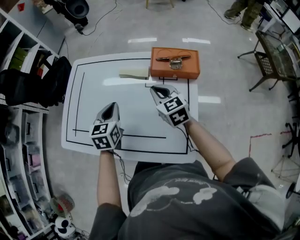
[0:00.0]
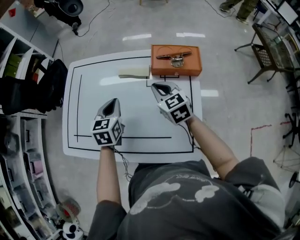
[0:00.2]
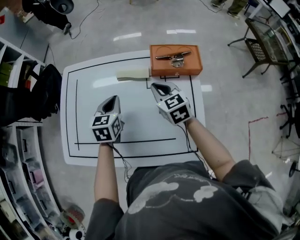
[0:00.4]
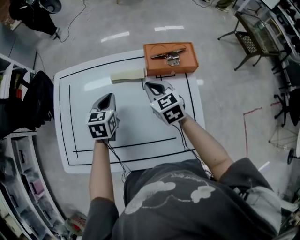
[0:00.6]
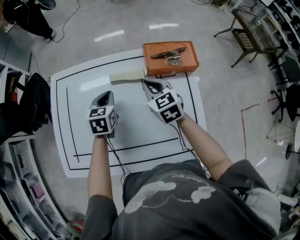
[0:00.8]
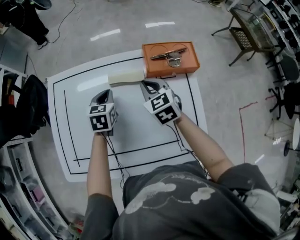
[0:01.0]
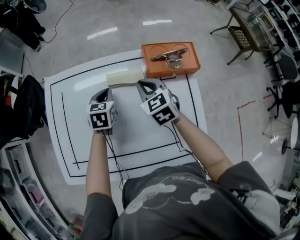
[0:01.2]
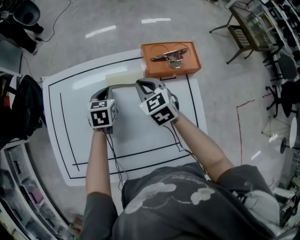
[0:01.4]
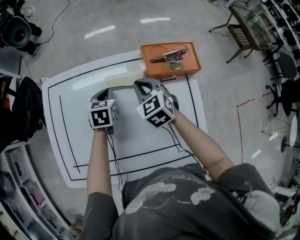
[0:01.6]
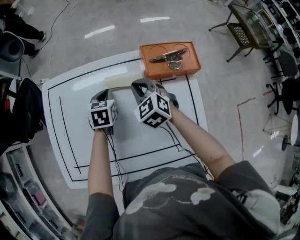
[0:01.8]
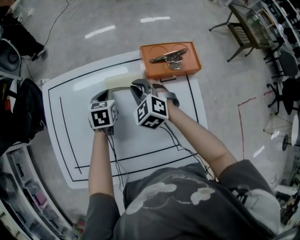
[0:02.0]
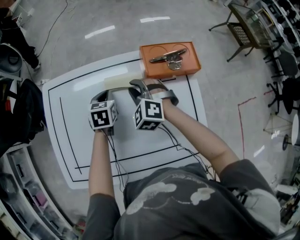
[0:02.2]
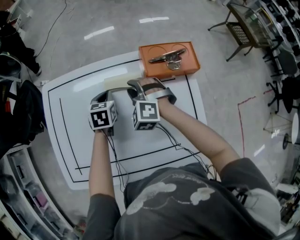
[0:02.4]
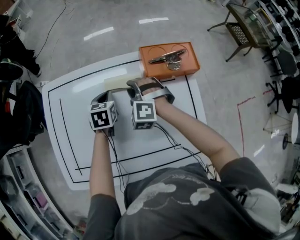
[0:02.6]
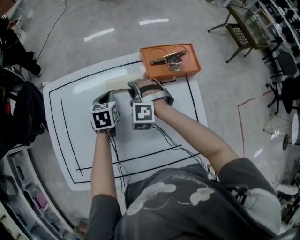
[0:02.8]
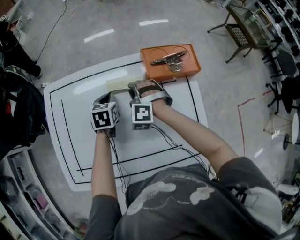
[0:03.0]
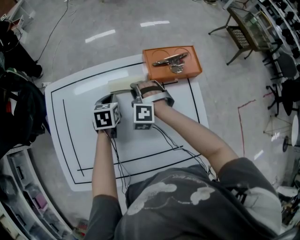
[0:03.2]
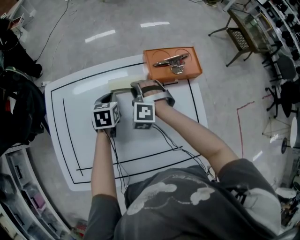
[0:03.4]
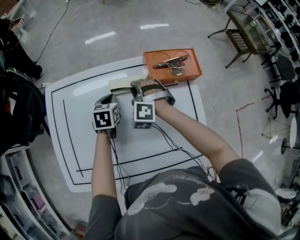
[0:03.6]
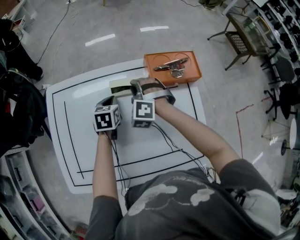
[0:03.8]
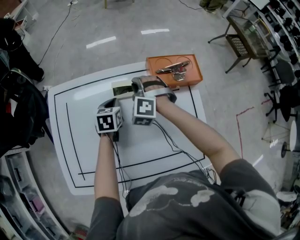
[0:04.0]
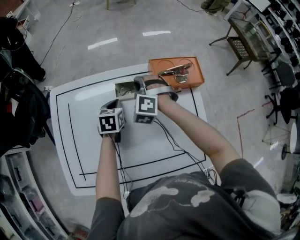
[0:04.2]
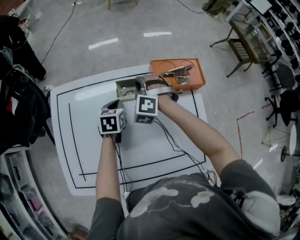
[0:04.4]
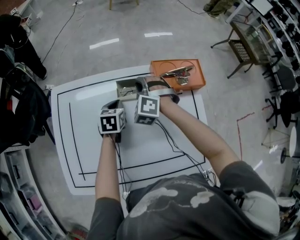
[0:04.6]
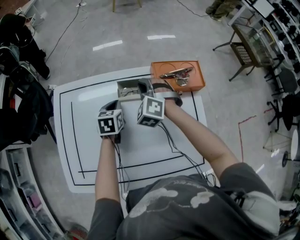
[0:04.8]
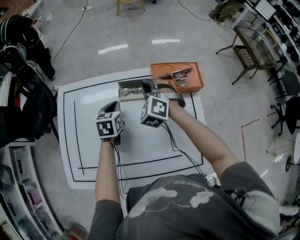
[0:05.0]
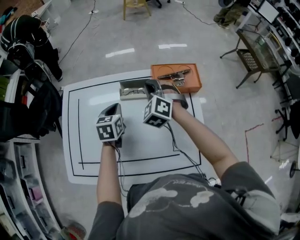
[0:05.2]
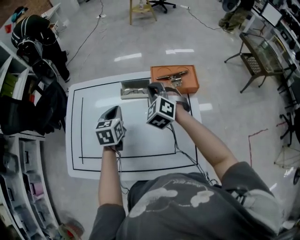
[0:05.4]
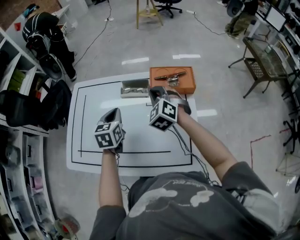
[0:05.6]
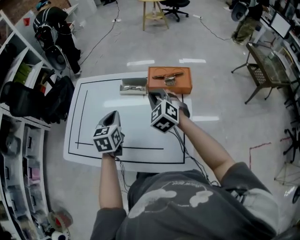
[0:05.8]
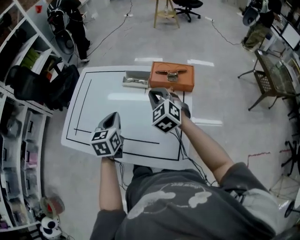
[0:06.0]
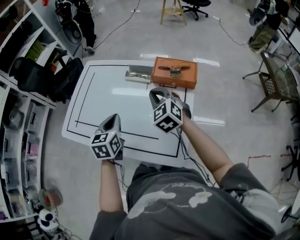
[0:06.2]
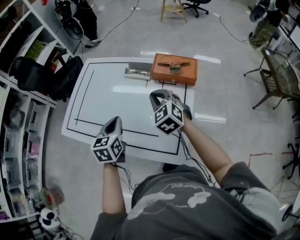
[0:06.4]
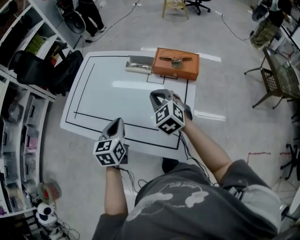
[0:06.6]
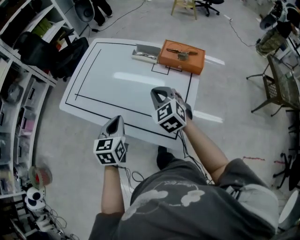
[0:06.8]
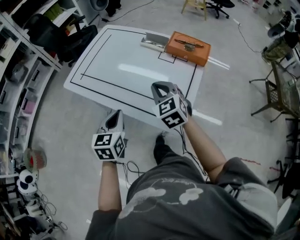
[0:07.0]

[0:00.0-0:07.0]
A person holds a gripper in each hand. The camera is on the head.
0:00.0 to 0:01.4: The right gripper moves forward and to the left, some 10 cm. Meanwhile the left gripper moves forward and downward, about 20 cm, and swivels approximately 20 degrees.
0:01.4 to 0:02.8: The right gripper ends up roughly 5 cm from where it was, rolls counterclockwise, seen from behind, by about 50 degrees, and opens up.
0:02.8 to 0:04.2: The right gripper travels forward by roughly 5 cm.
0:04.2 to 0:05.6: The right gripper is displaced to the right, backward and upward by roughly 15 cm, and rotates some 20 degrees; the left gripper travels upward and backward by some 20 cm, and rotates some 20 degrees.
0:05.6 to 0:07.0: The two grippers go approximately 30 cm backward. The right gripper swivels about 30 degrees.

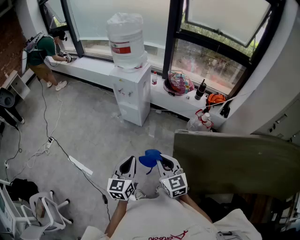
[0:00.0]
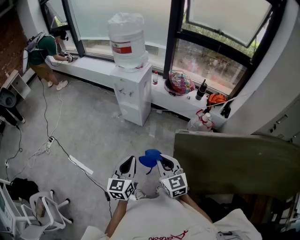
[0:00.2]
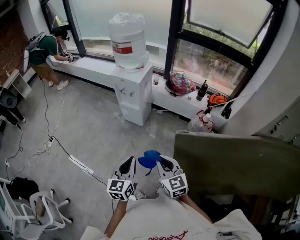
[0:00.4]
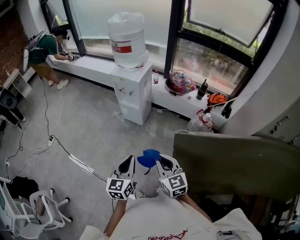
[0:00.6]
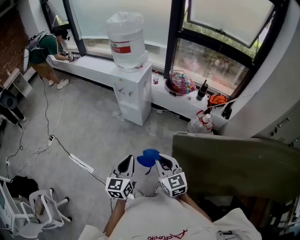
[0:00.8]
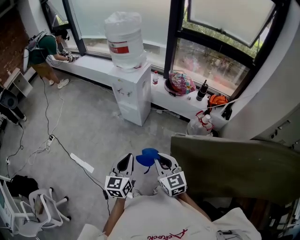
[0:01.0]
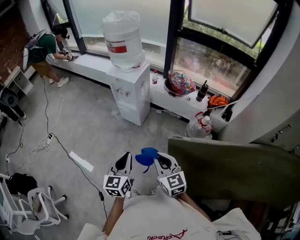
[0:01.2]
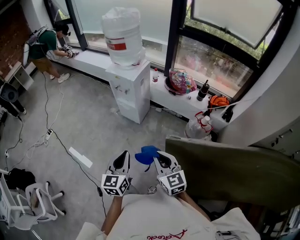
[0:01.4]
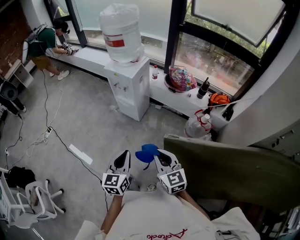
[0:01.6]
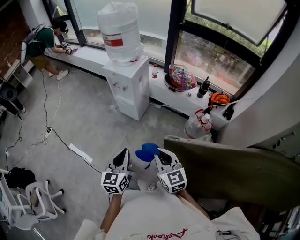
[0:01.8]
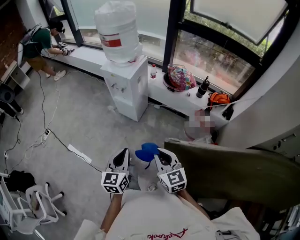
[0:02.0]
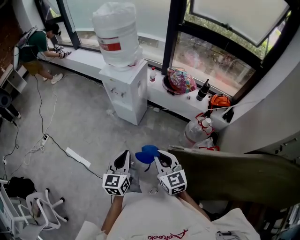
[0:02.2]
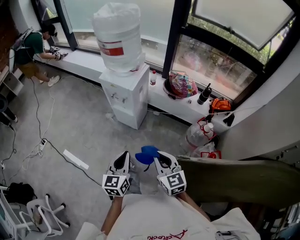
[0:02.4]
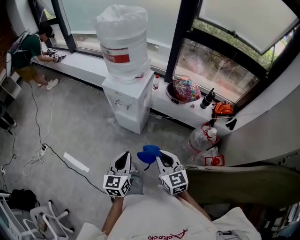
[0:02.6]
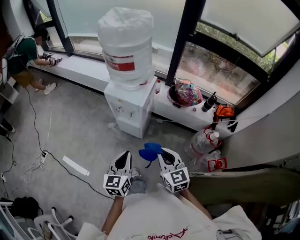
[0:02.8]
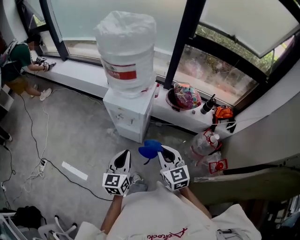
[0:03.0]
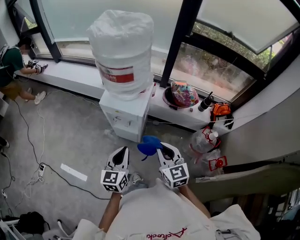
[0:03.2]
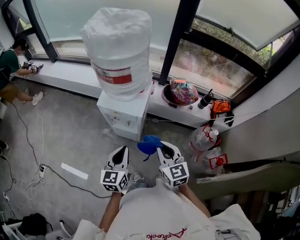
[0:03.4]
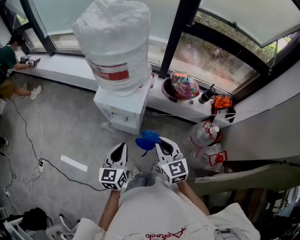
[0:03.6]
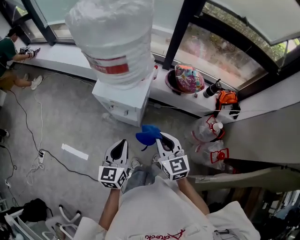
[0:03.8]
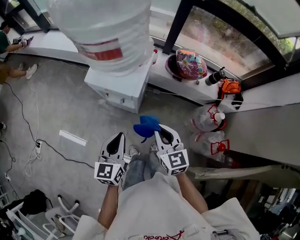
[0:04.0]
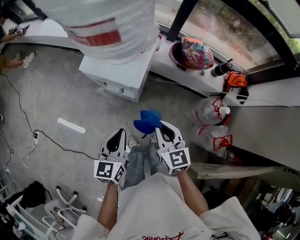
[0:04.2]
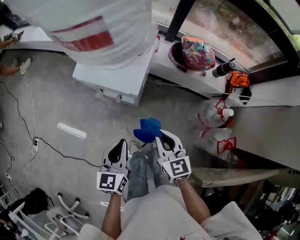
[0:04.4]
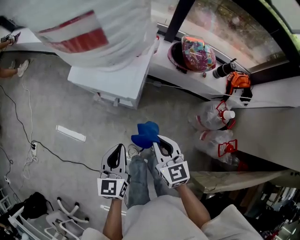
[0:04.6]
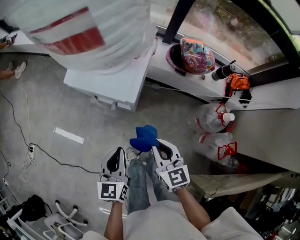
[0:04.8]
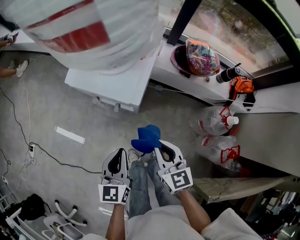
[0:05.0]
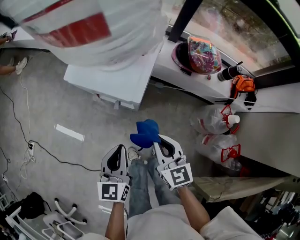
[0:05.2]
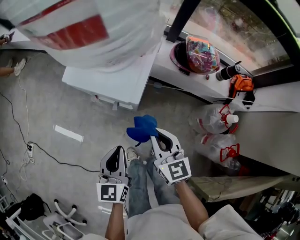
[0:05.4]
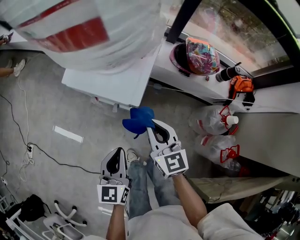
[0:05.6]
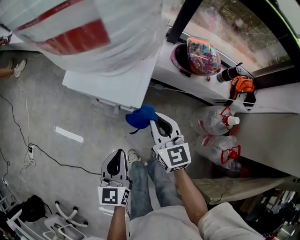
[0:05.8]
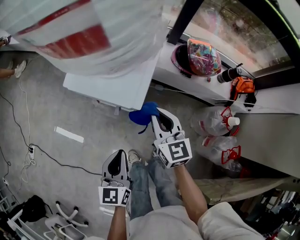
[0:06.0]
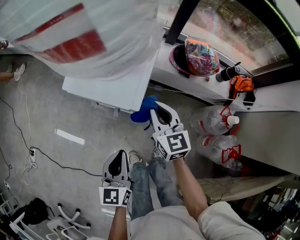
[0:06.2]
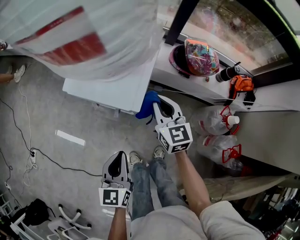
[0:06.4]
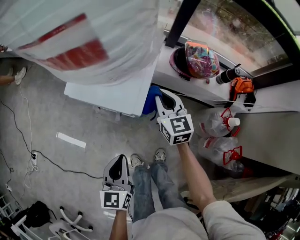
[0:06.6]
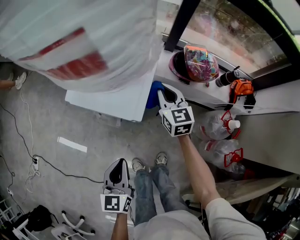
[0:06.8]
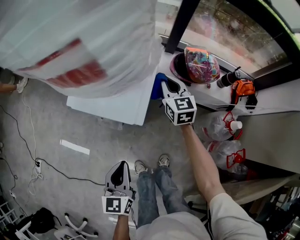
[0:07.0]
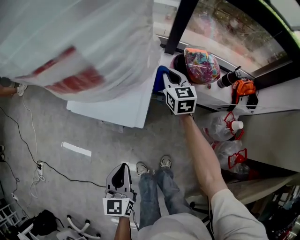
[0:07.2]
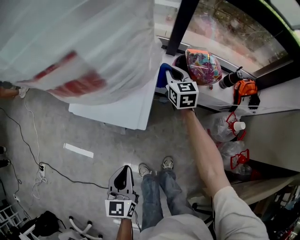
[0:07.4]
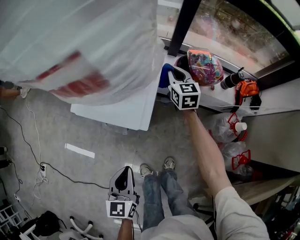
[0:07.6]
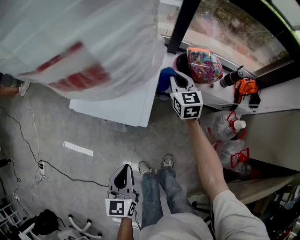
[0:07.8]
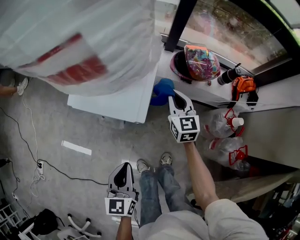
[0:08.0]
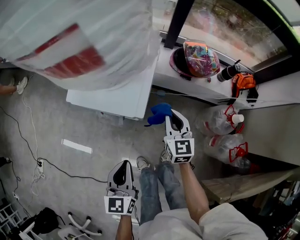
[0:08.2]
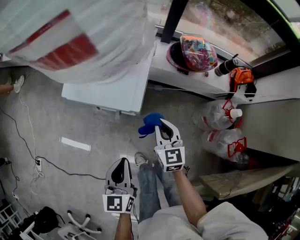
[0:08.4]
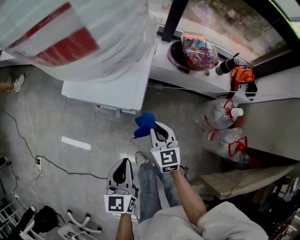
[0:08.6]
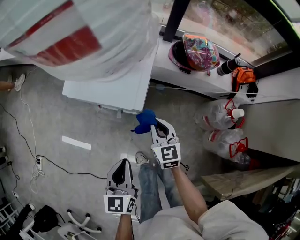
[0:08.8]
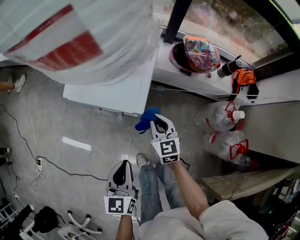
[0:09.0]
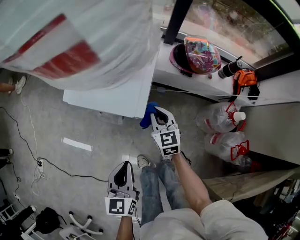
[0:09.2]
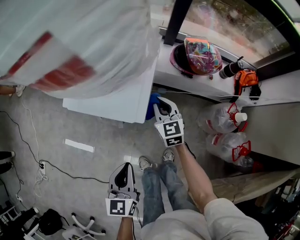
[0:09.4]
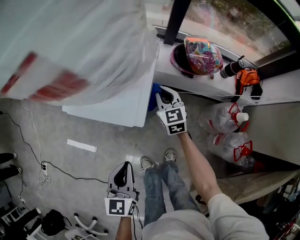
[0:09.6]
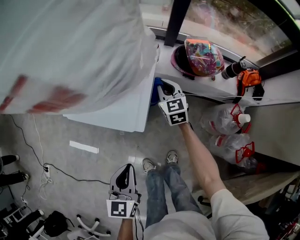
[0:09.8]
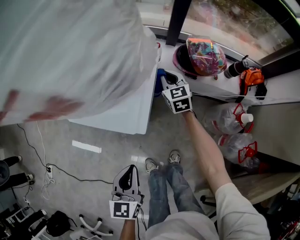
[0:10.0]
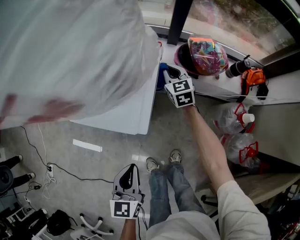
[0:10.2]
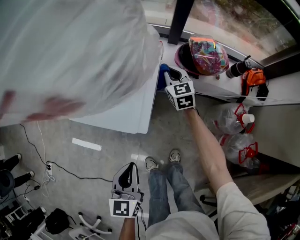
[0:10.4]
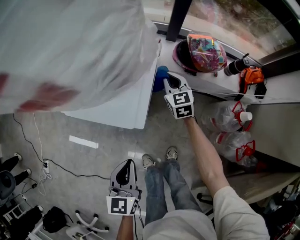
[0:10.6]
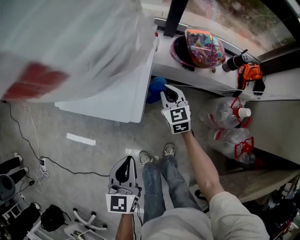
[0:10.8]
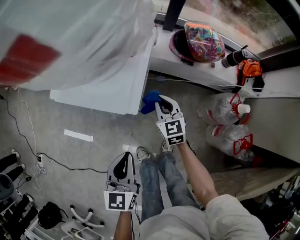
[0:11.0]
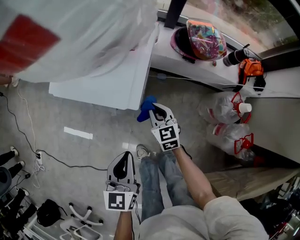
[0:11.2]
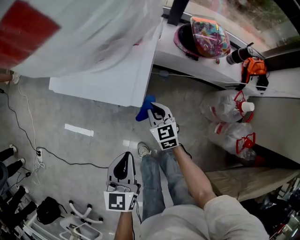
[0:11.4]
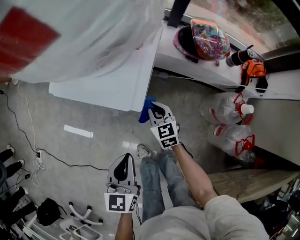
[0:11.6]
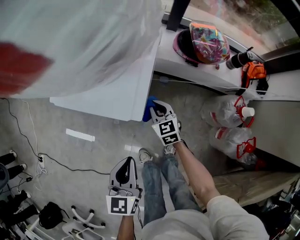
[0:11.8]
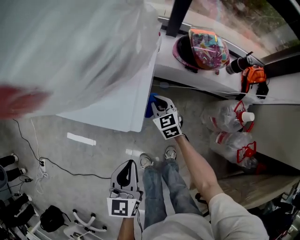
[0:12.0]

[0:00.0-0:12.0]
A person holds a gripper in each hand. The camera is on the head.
0:00.0 to 0:01.6: The two grippers go about 10 cm to the right and forward.
0:01.6 to 0:03.0: The two grippers go roughly 35 cm forward.
0:03.0 to 0:04.4: The two grippers go about 15 cm downward and forward.
0:04.4 to 0:06.0: The left gripper ends up roughly 5 cm from where it was. Meanwhile the right gripper moves forward, some 15 cm.
0:06.0 to 0:07.6: The right gripper goes approximately 25 cm forward.
0:07.6 to 0:09.0: The right gripper moves backward, approximately 25 cm.
0:09.0 to 0:10.4: The right gripper goes some 25 cm forward; the left gripper shifts roughly 5 cm forward.
0:10.4 to 0:12.0: The right gripper moves backward, downward and to the left, some 20 cm.

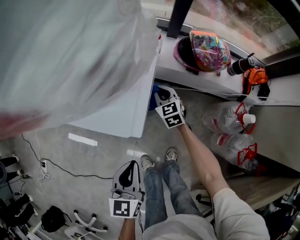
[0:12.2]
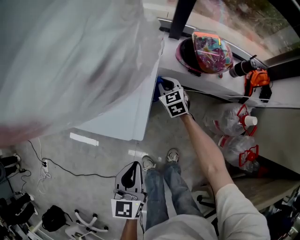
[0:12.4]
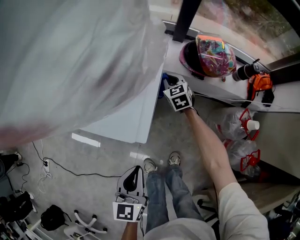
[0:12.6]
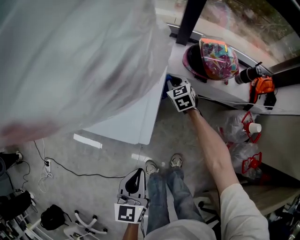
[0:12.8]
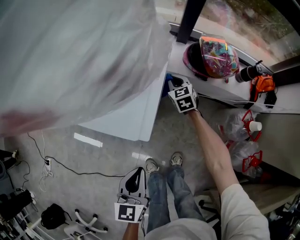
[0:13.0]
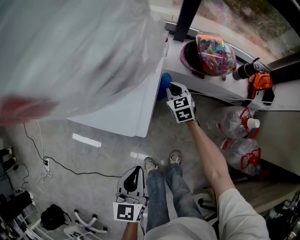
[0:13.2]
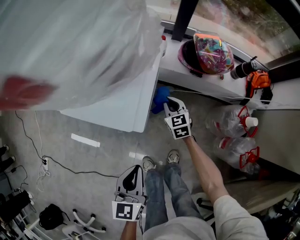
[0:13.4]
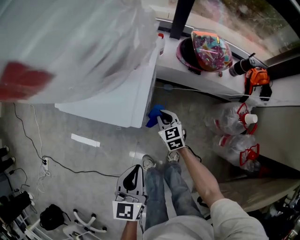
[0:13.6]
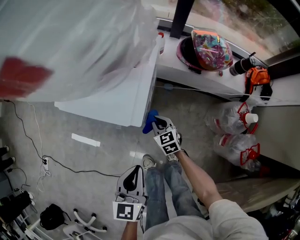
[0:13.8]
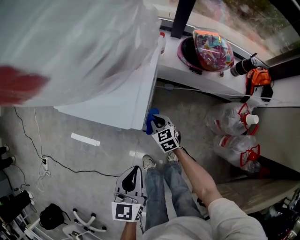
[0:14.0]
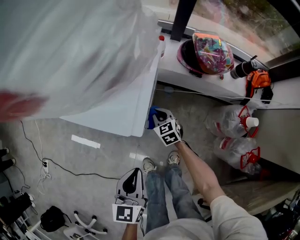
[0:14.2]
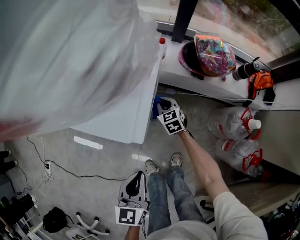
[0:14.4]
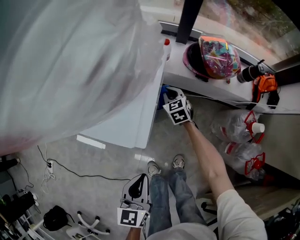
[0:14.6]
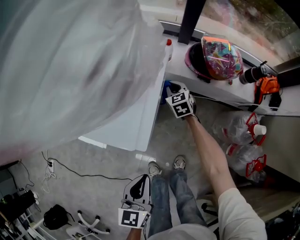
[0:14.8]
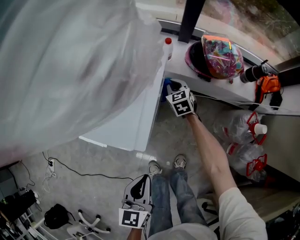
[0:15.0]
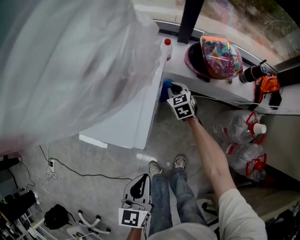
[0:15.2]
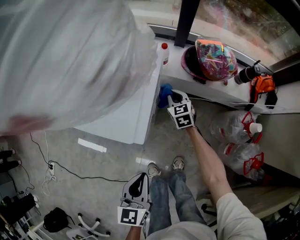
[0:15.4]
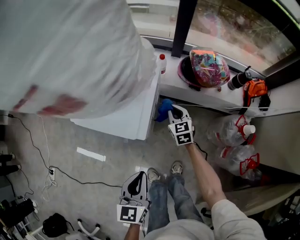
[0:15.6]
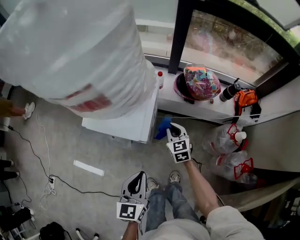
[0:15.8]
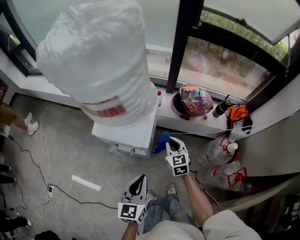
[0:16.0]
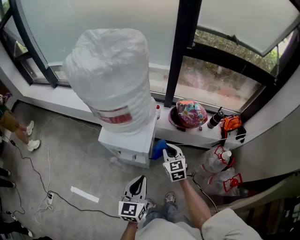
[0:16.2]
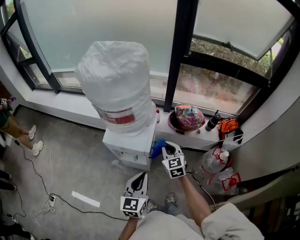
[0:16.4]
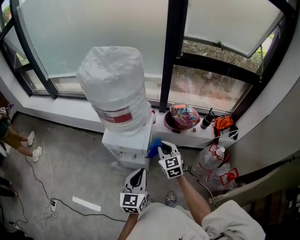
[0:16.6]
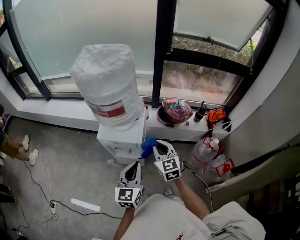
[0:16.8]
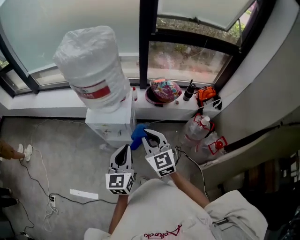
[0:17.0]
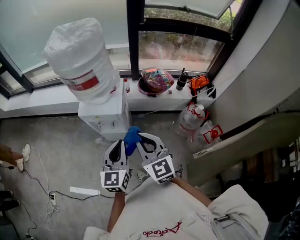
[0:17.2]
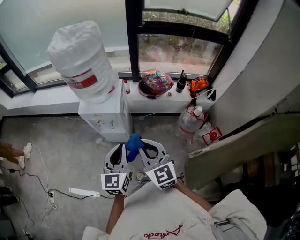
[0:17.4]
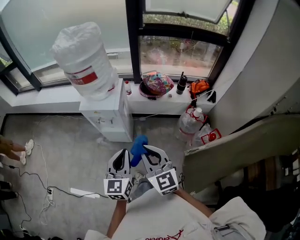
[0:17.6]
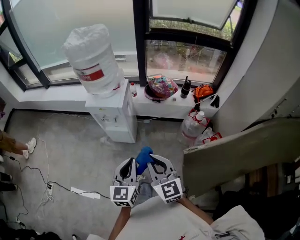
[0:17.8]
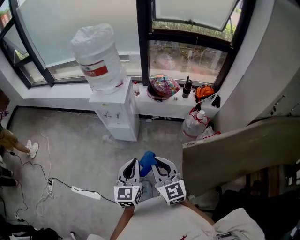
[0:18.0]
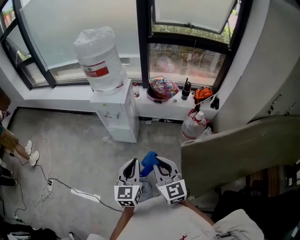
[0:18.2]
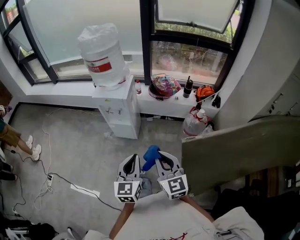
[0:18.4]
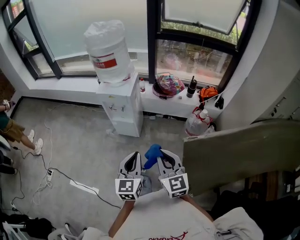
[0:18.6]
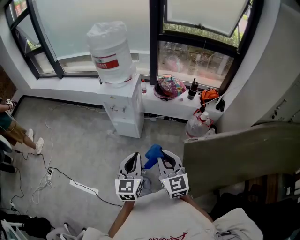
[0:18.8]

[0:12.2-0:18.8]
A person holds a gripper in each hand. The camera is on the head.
0:12.2 to 0:13.8: The right gripper moves backward, roughly 15 cm.
0:13.8 to 0:15.4: The right gripper goes roughly 20 cm forward and to the right.
0:15.4 to 0:17.2: The right gripper travels upward and backward by some 60 cm, and swivels about 30 degrees. Meanwhile the left gripper is displaced upward by roughly 25 cm, and changes its angle by roughly 30 degrees.
0:17.2 to 0:18.8: The two grippers go some 25 cm backward.
